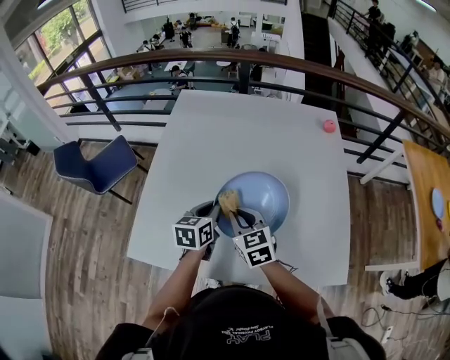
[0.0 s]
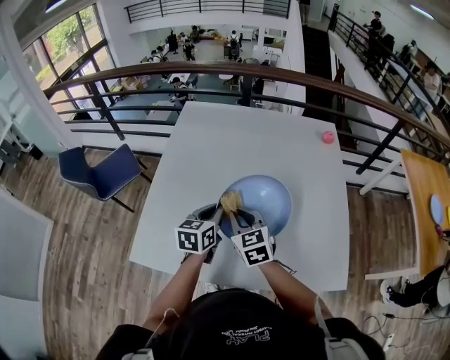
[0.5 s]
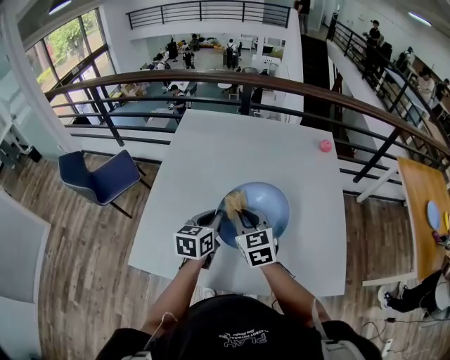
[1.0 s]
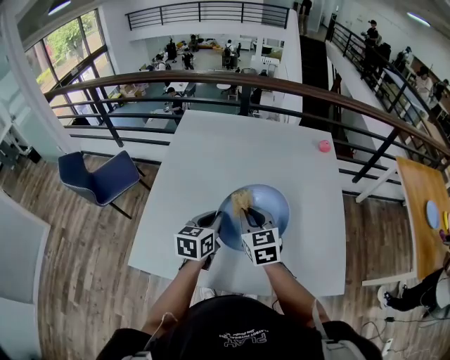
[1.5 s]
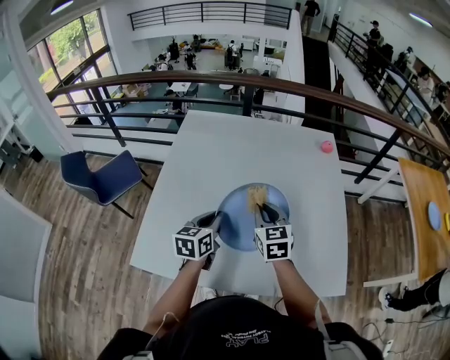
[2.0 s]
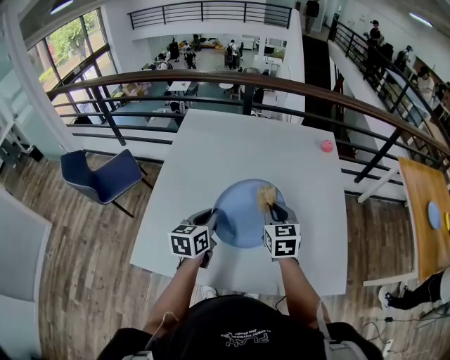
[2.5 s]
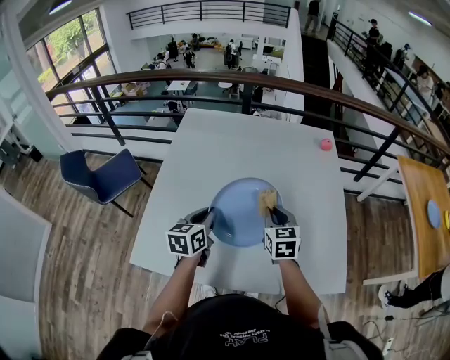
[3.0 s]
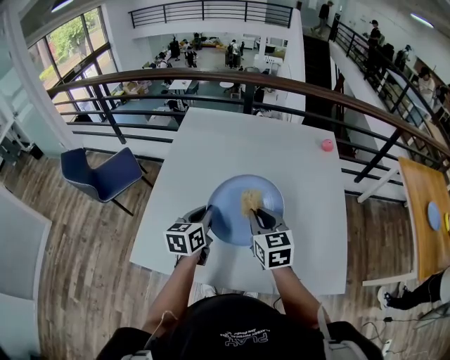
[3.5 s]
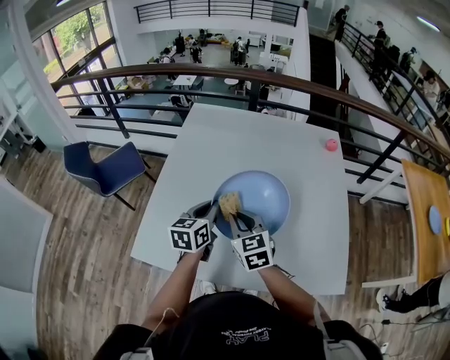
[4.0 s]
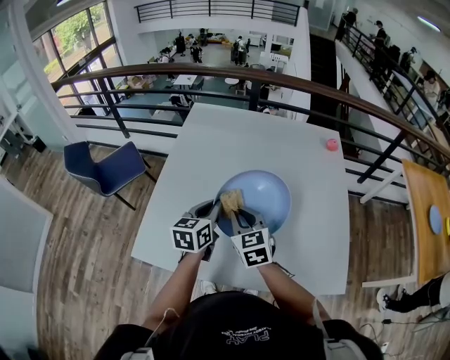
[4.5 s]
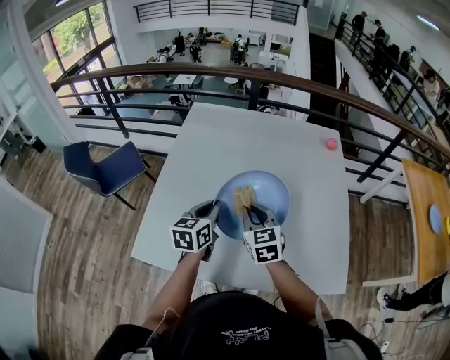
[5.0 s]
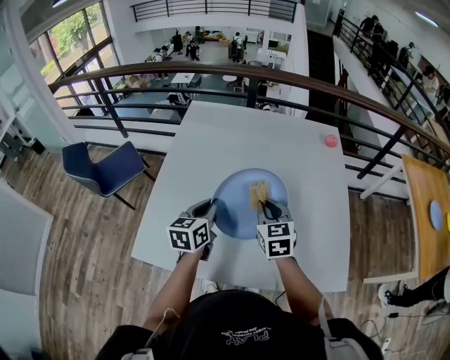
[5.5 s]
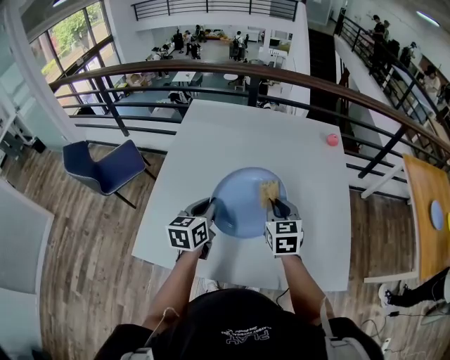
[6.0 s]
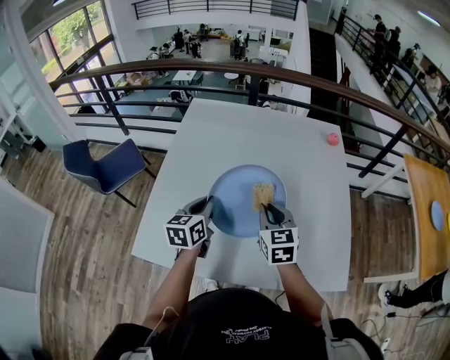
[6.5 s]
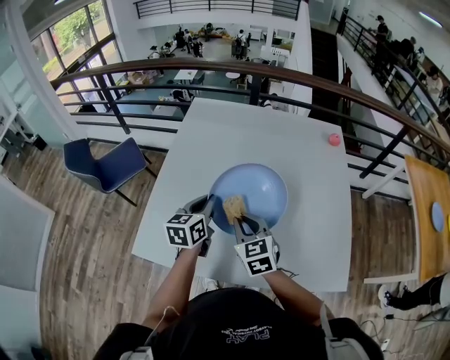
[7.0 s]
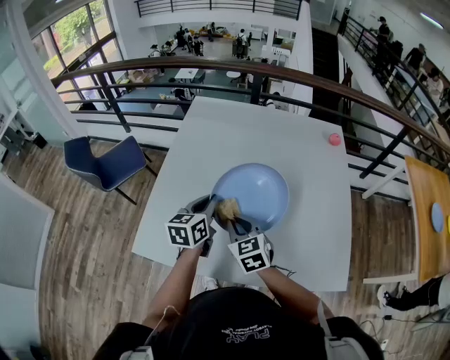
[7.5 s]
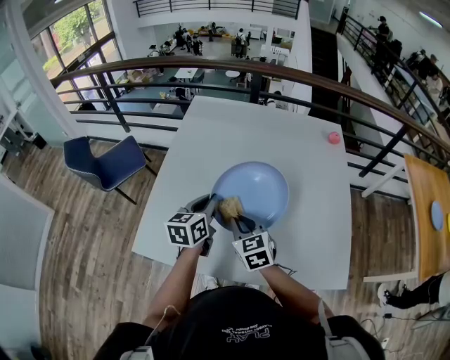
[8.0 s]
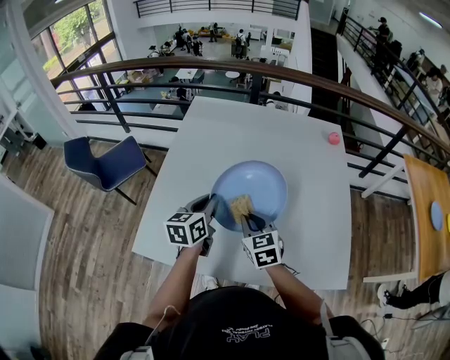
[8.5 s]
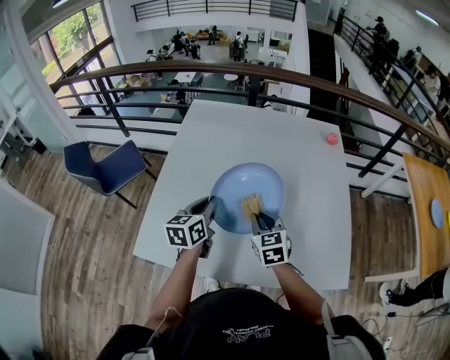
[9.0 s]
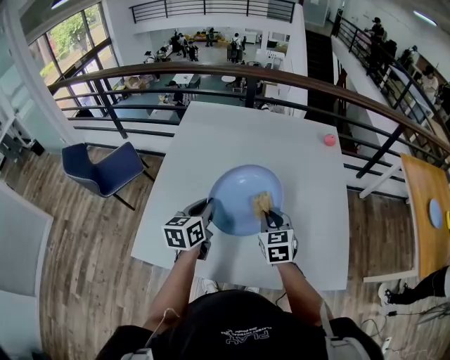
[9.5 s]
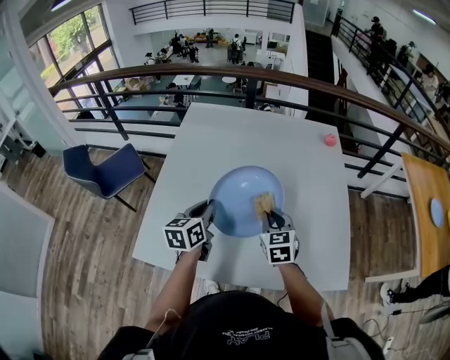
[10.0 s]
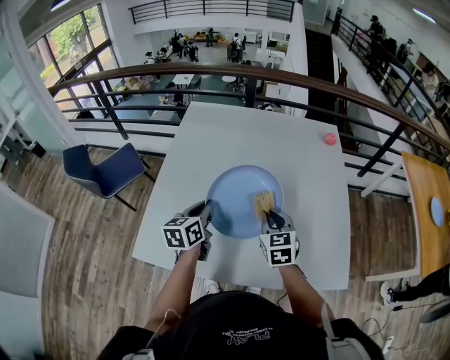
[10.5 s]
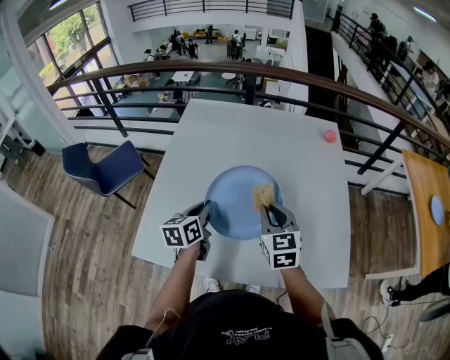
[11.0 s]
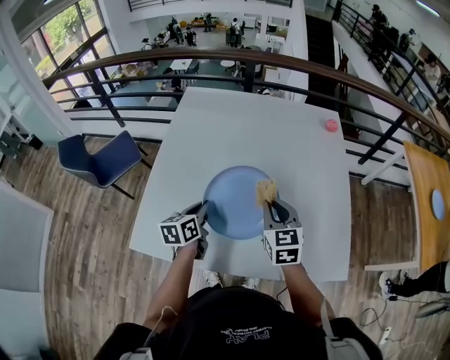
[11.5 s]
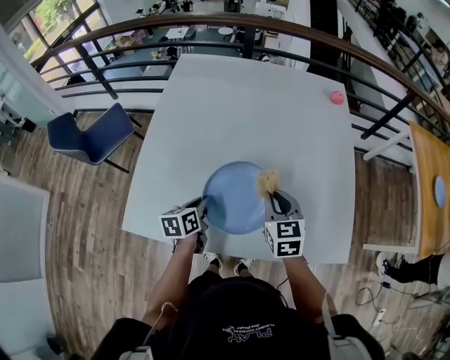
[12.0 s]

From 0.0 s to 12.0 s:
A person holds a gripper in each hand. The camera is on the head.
From 0.0 s to 2.0 s: The right gripper goes some 10 cm to the right and upward.
From 2.0 s to 4.0 s: The right gripper shifts about 10 cm to the left and backward.
From 4.0 s to 6.0 s: The right gripper goes approximately 15 cm to the right and forward.
From 6.0 s to 8.0 s: The right gripper goes approximately 15 cm to the left and backward.
From 8.0 s to 10.0 s: The right gripper travels to the right by roughly 10 cm.
From 10.0 s to 12.0 s: The right gripper travels upward and back again, about 5 cm each way. The left gripper is displaced downward by some 15 cm, and changes its angle by roughly 20 degrees.

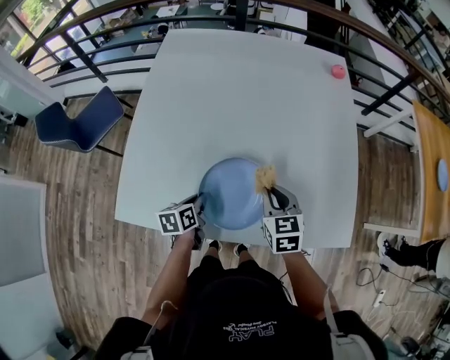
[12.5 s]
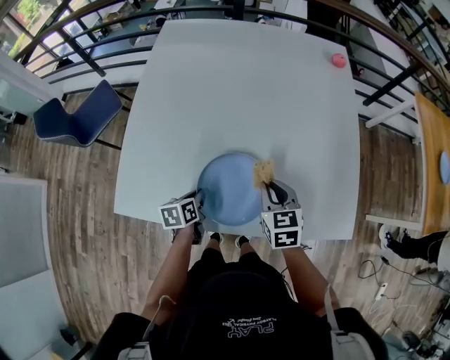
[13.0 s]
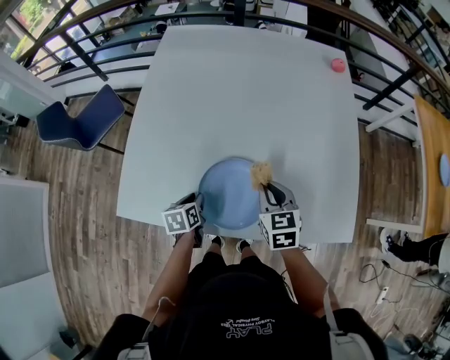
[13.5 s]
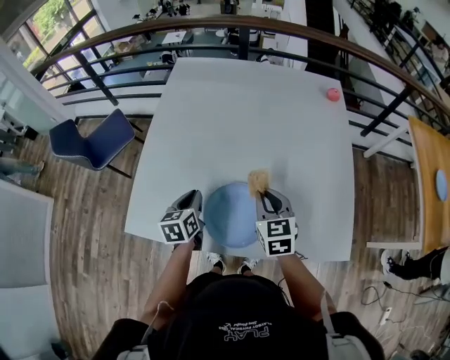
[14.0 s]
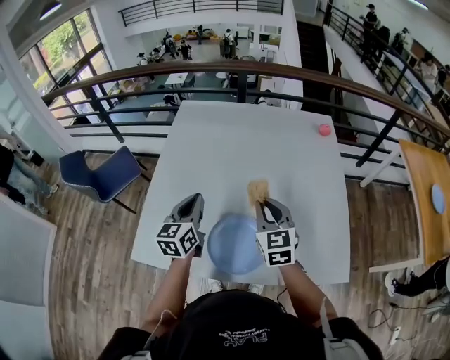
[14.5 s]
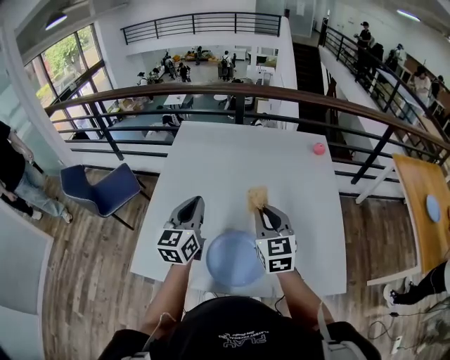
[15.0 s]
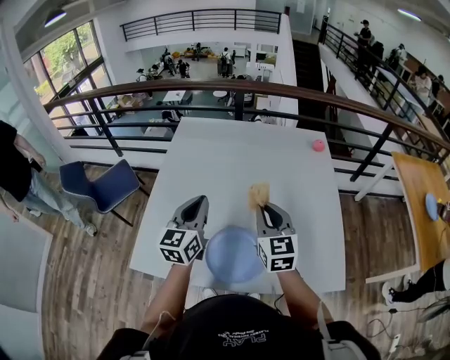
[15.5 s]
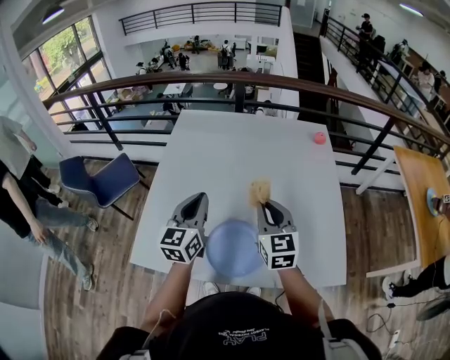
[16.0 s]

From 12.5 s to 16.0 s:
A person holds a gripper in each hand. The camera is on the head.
From 12.5 s to 14.5 s: The left gripper shifts some 25 cm upward, and tips its fingers upward by approximately 30 degrees, while the right gripper heads upward, covering about 15 cm, and swivels roughly 20 degrees.
From 14.5 s to 16.0 s: The left gripper goes about 5 cm upward.

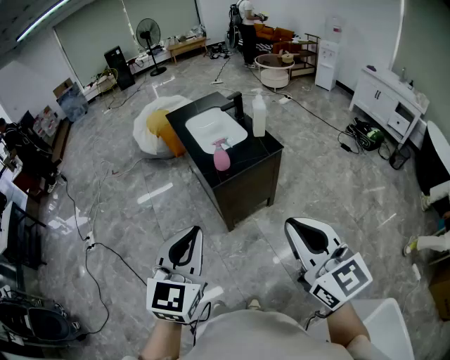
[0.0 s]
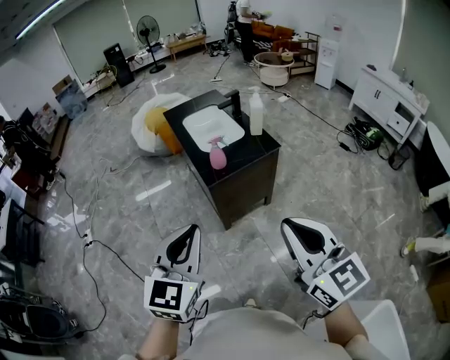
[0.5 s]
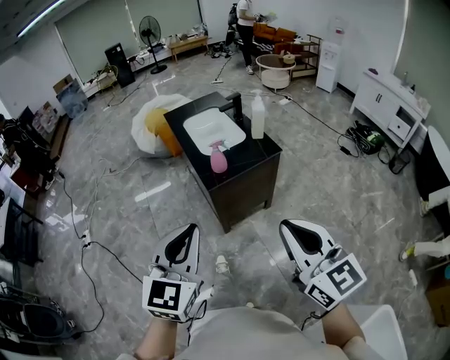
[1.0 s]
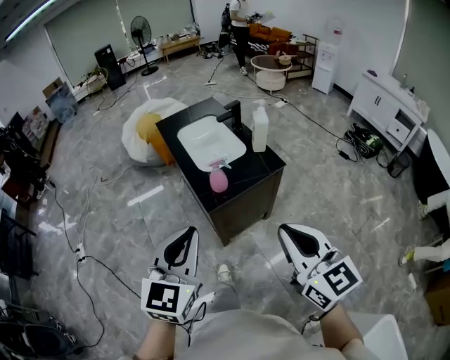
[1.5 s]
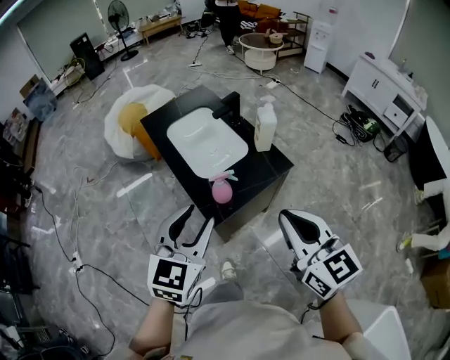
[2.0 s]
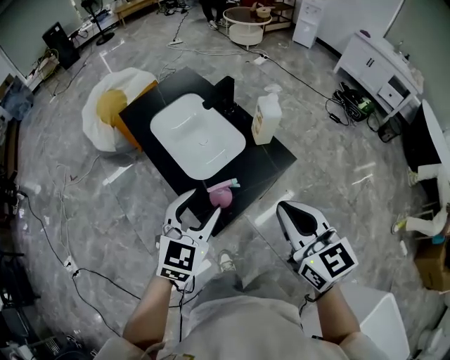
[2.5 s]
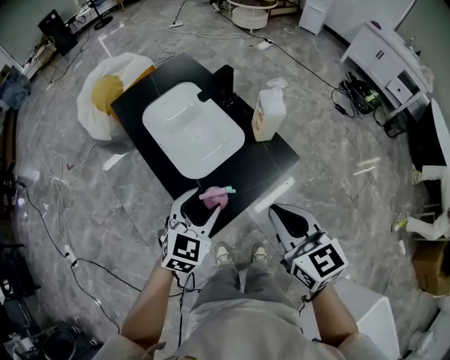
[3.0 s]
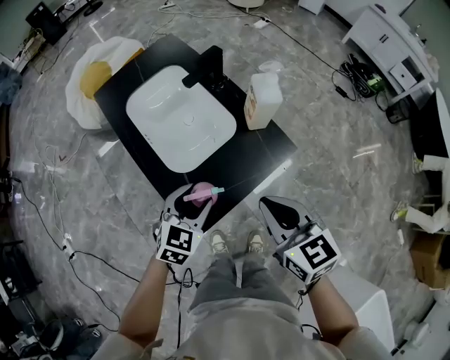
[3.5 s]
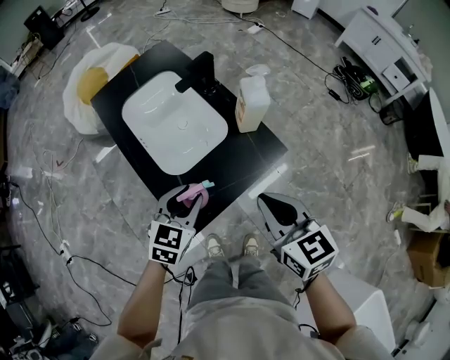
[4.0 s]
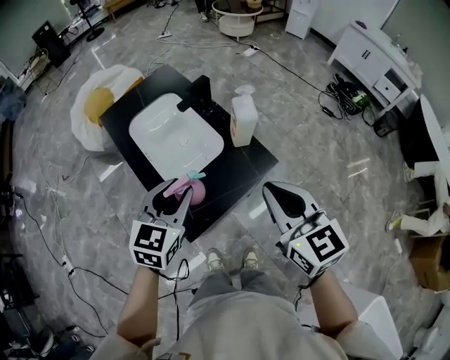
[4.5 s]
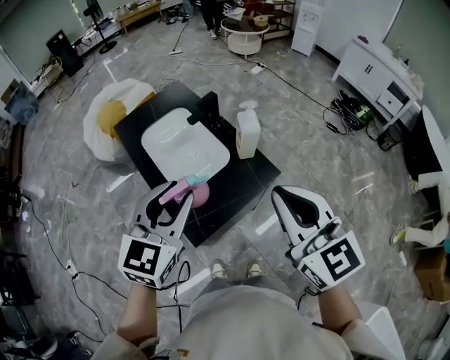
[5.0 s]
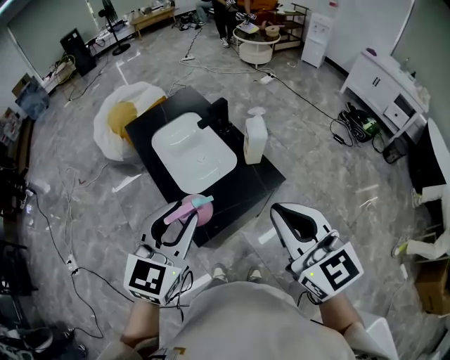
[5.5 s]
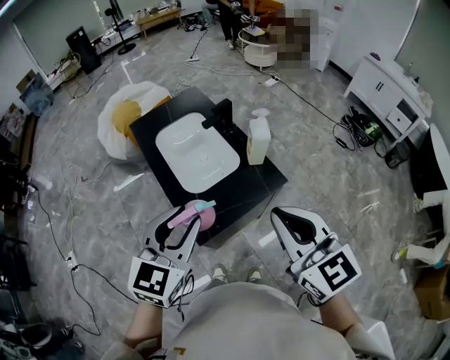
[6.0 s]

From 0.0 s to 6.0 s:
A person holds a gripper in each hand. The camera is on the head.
From 0.0 s to 2.0 s: The two grippers go approximately 30 cm forward. The left gripper opens its fingers.
From 2.0 s to 4.0 s: The left gripper is displaced downward and forward by approximately 25 cm, and rotates approximately 20 degrees. Meanwhile the right gripper goes some 20 cm forward and downward.
From 4.0 s to 6.0 s: The grippers both shift upward by some 20 cm. The right gripper turns by roughly 20 degrees. Meanwhile the left gripper swivels roughly 20 degrees.

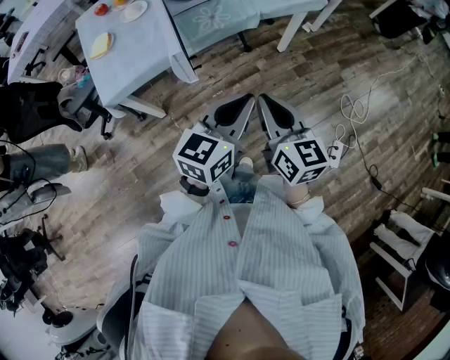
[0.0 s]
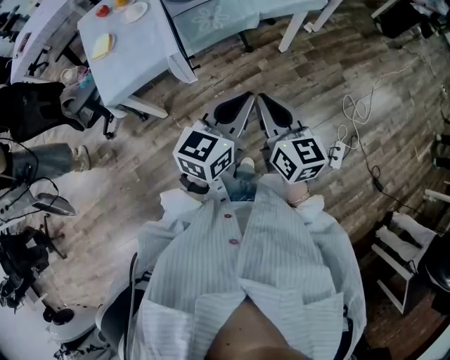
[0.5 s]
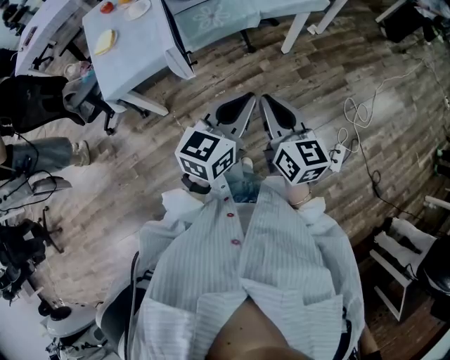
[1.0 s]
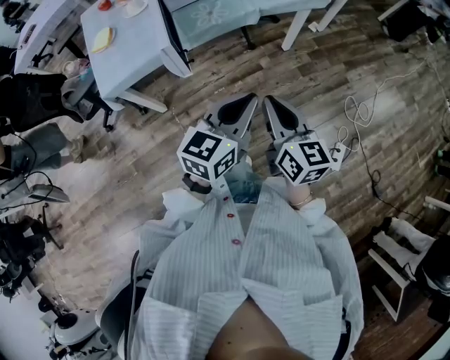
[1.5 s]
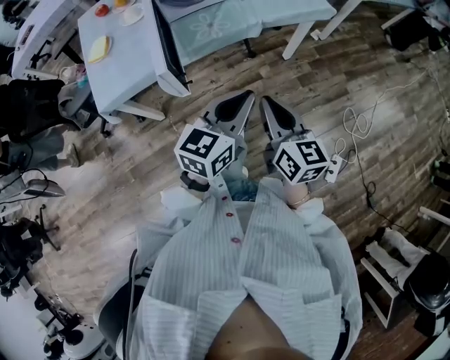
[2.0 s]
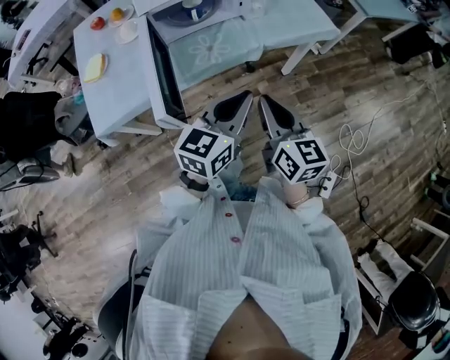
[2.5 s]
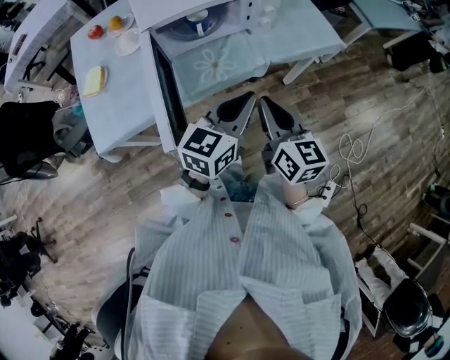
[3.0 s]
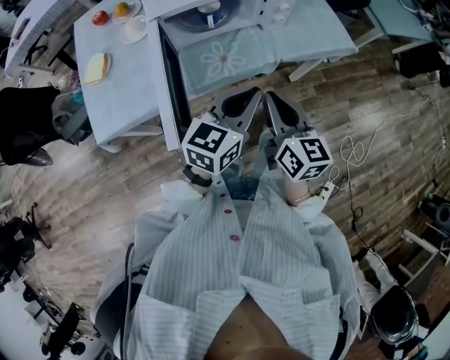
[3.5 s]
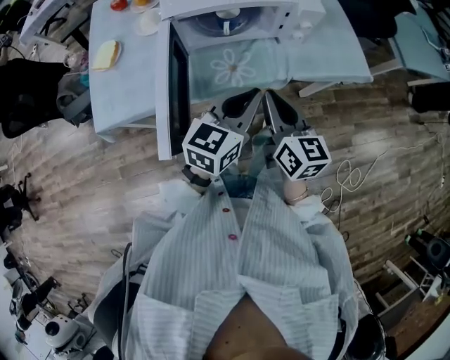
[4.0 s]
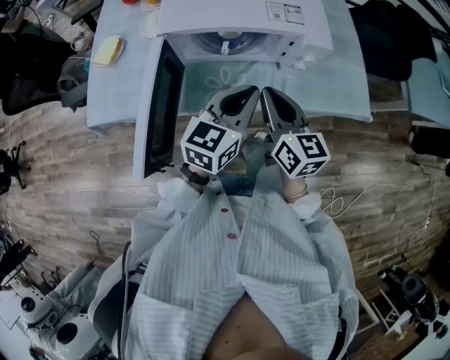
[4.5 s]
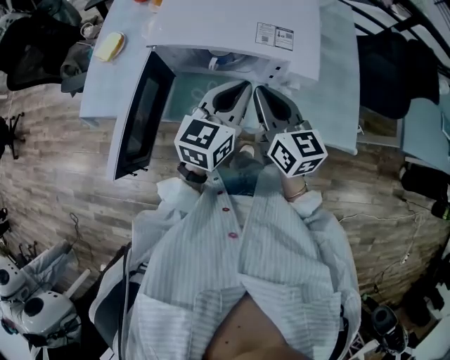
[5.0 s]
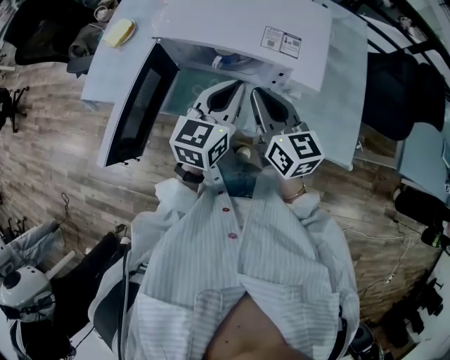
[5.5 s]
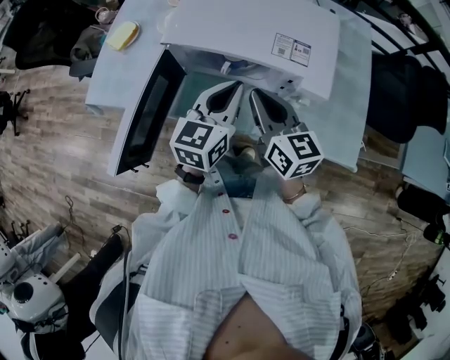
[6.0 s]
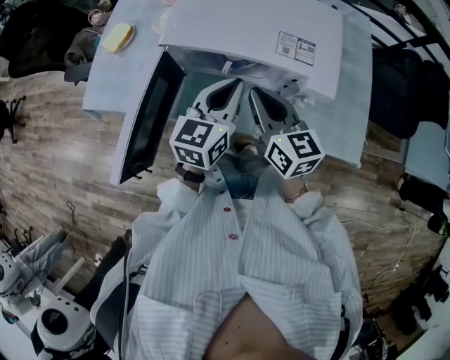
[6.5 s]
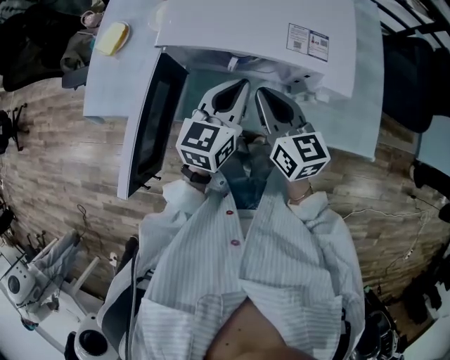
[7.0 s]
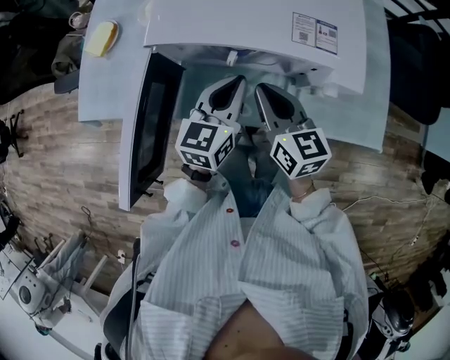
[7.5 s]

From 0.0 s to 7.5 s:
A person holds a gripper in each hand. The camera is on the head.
From 0.0 s to 2.0 s: The grippers both shift forward by about 10 cm.
From 2.0 s to 4.0 s: Both grippers travel together forward, some 25 cm.
From 4.0 s to 5.5 s: The left gripper changes place by some 20 cm, and swivels some 30 degrees, while the right gripper ends up approximately 20 cm from where it was, and swivels some 30 degrees.
From 5.5 s to 7.5 s: Both grippers travel together downward, some 10 cm.
